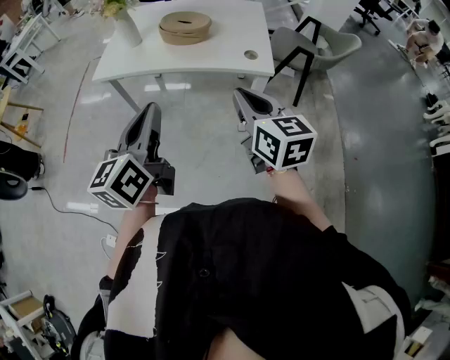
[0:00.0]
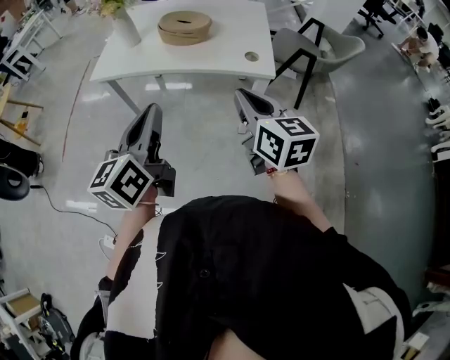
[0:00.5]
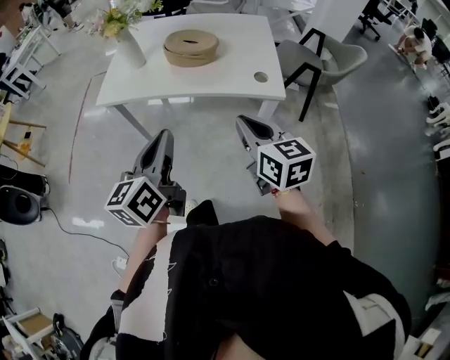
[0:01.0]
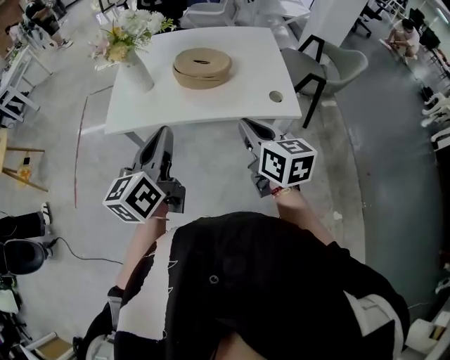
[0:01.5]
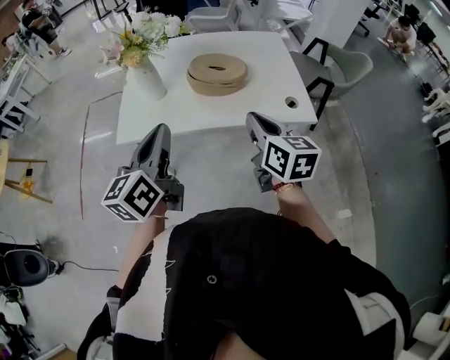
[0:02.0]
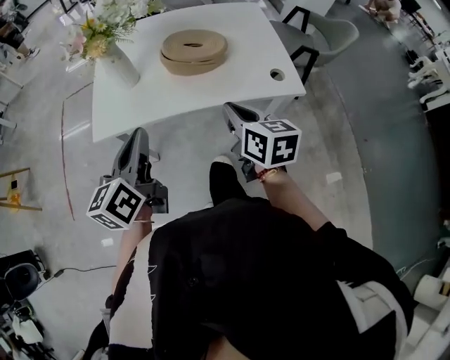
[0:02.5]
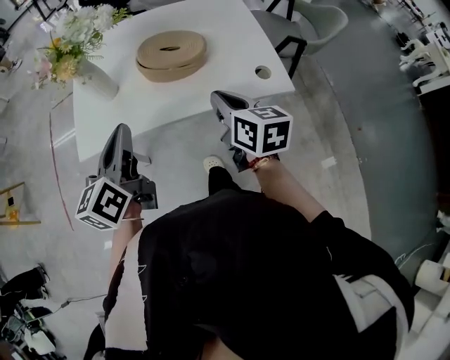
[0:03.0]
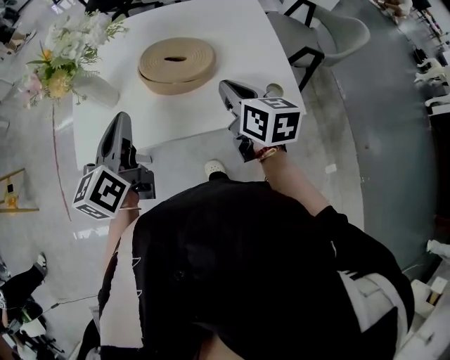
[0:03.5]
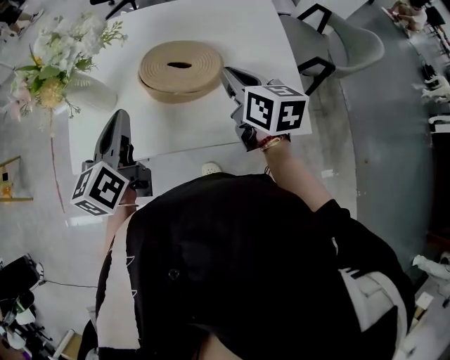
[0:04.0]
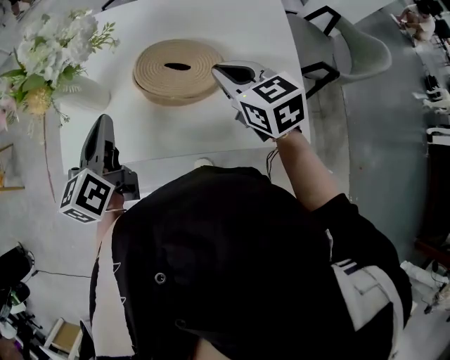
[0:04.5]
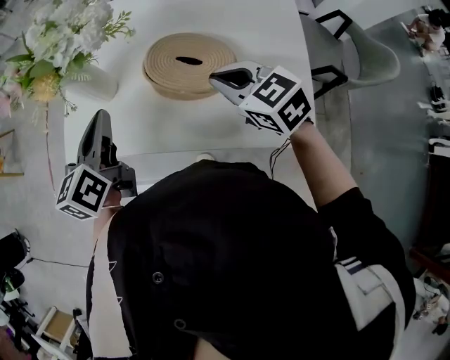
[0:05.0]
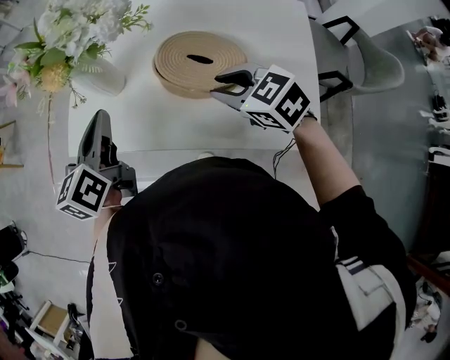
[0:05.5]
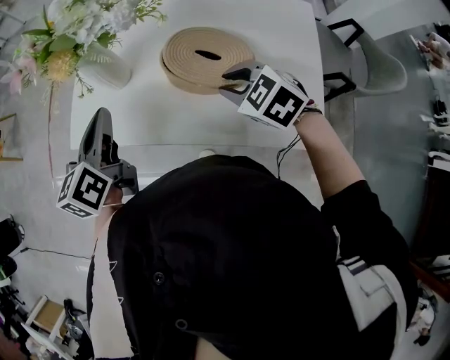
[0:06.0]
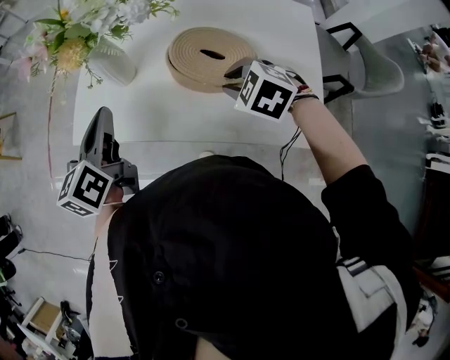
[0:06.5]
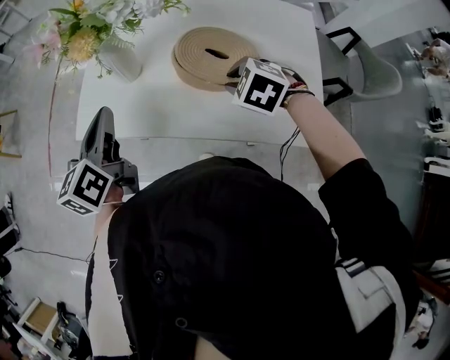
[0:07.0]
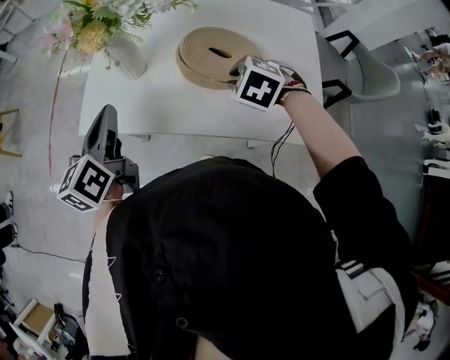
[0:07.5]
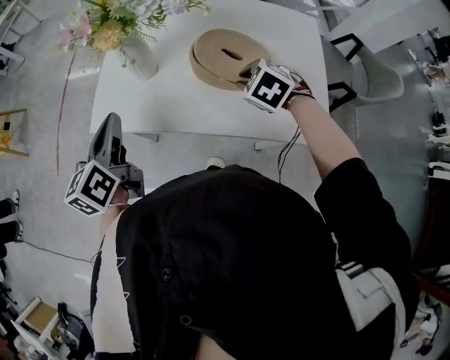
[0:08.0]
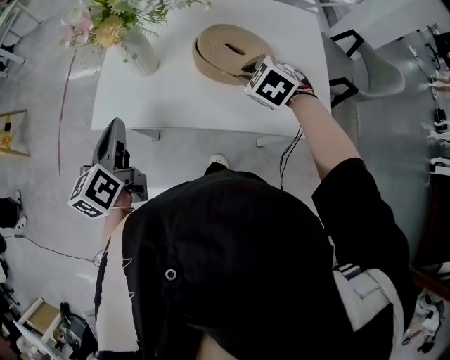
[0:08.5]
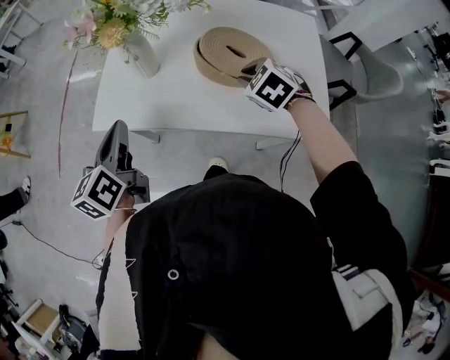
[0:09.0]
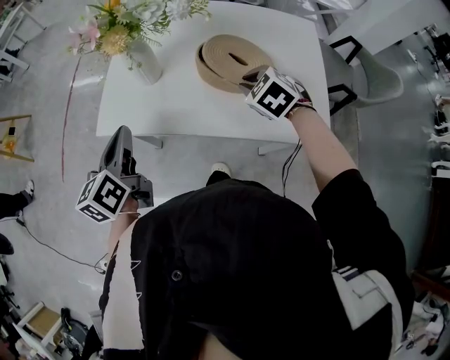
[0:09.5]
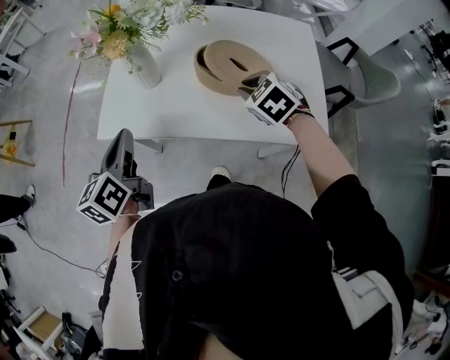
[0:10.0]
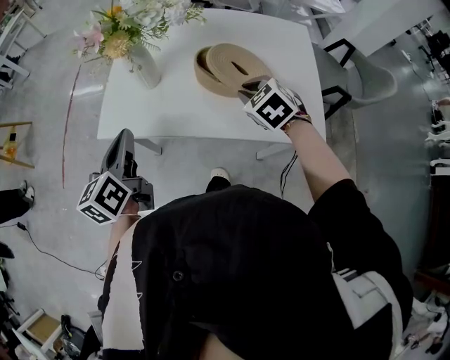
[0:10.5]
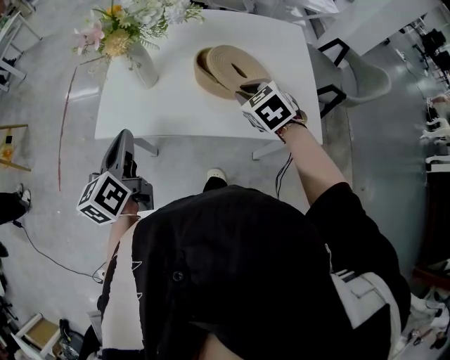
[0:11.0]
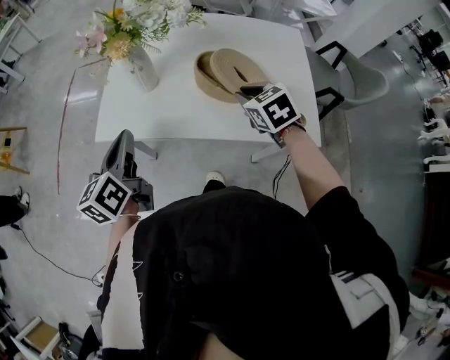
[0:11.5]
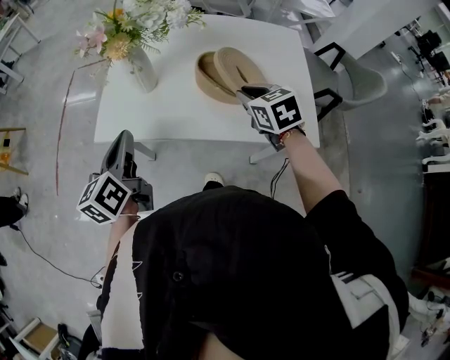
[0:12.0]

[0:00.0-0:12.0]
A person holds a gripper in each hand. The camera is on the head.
0:00.0 to 0:02.0: Both grippers move forward and to the left, about 25 cm.
0:02.0 to 0:04.0: The right gripper heads forward, covering about 25 cm. The left gripper travels forward and downward by roughly 20 cm.
0:04.0 to 0:06.0: The right gripper shifts by some 10 cm, angles its fingers downward, by roughly 30 degrees, and opens. The left gripper ends up about 10 cm from where it was.
0:06.0 to 0:08.0: The left gripper is displaced to the left by some 5 cm.
0:08.0 to 0:10.0: The grippers make only small movements.
0:10.0 to 0:12.0: The right gripper rotates about 30 degrees.

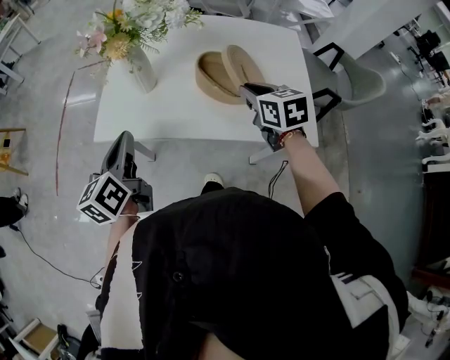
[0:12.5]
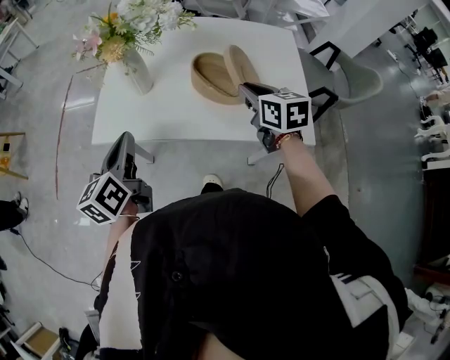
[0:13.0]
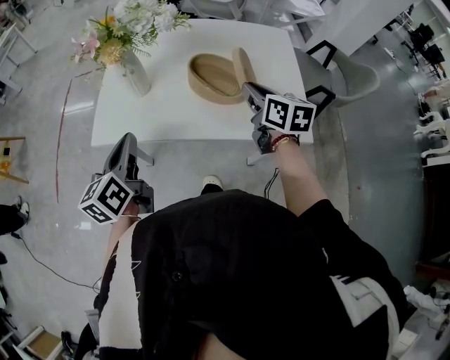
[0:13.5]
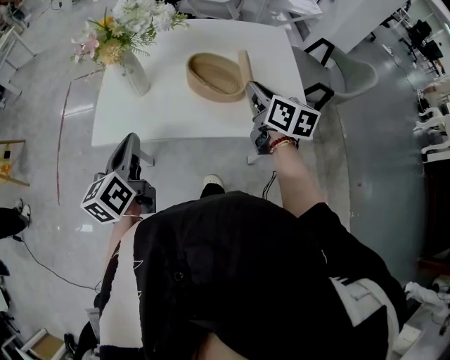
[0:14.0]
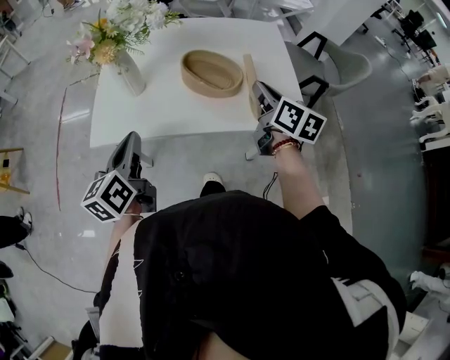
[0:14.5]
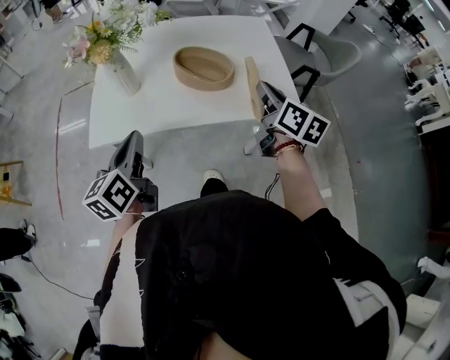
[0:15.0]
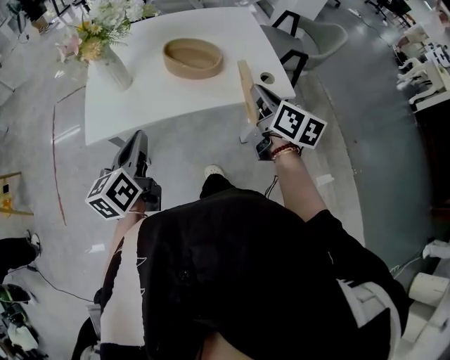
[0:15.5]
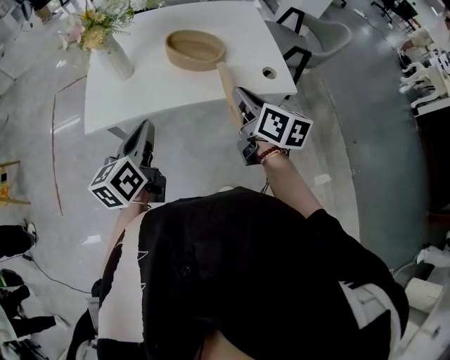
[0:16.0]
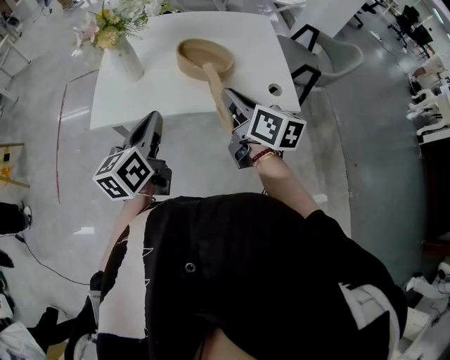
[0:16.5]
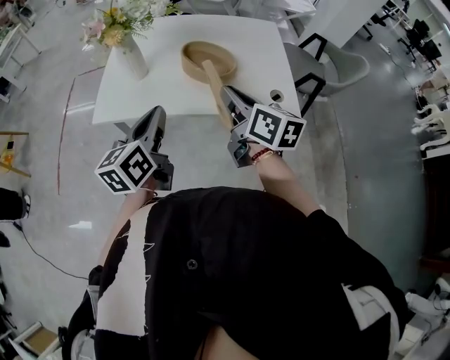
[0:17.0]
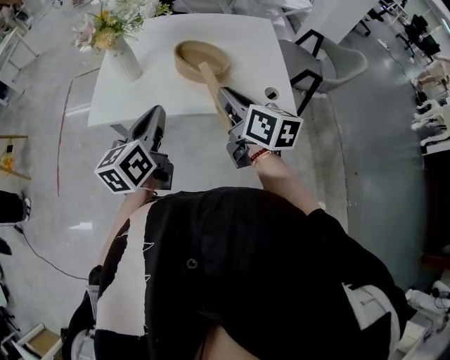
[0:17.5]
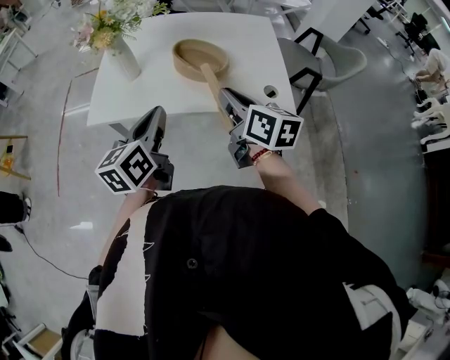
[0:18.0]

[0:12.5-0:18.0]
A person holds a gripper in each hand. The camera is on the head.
0:12.5 to 0:14.5: The right gripper goes about 10 cm to the right and backward, and changes its angle by approximately 40 degrees.
0:14.5 to 0:16.0: The left gripper heads backward and to the right, covering approximately 10 cm; the right gripper goes some 15 cm backward.
0:16.0 to 0:18.0: The left gripper travels to the right by about 5 cm.

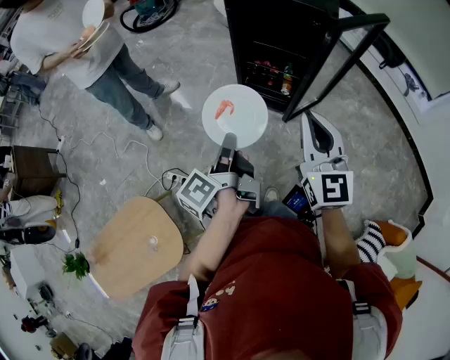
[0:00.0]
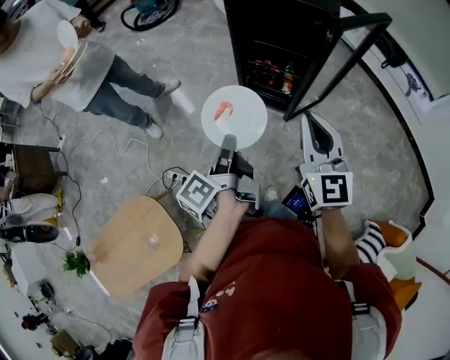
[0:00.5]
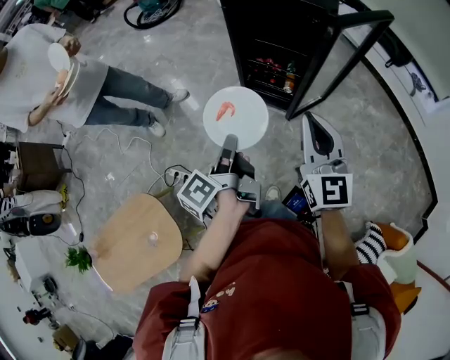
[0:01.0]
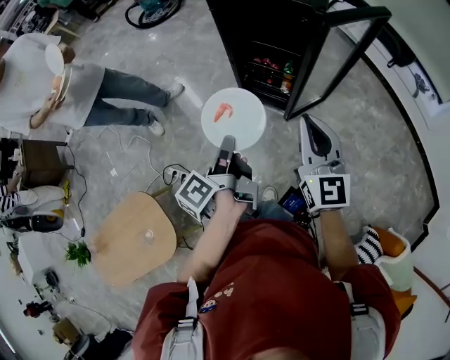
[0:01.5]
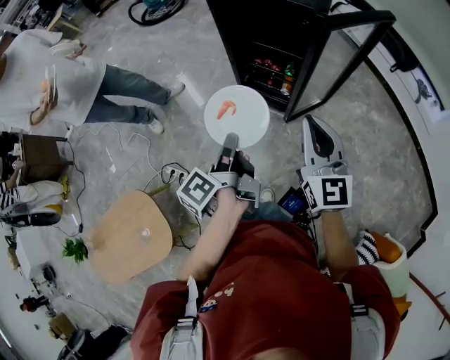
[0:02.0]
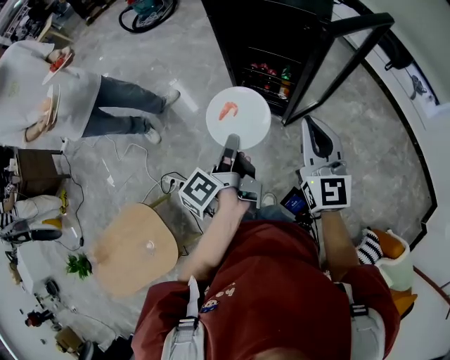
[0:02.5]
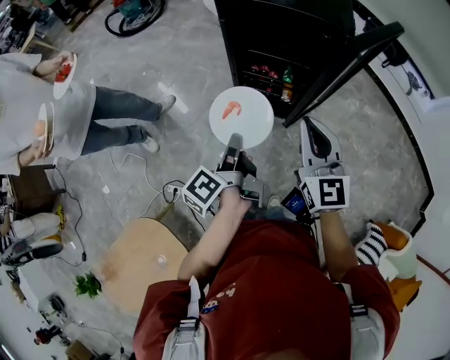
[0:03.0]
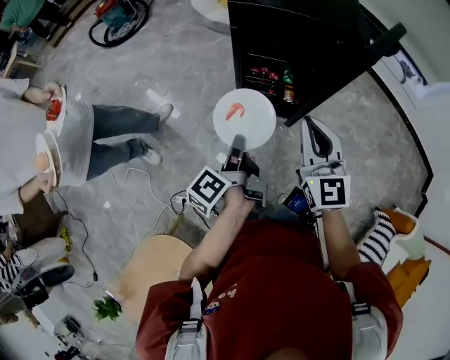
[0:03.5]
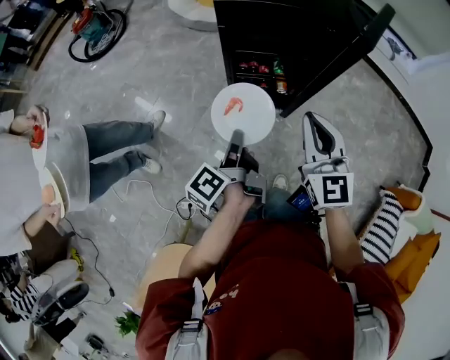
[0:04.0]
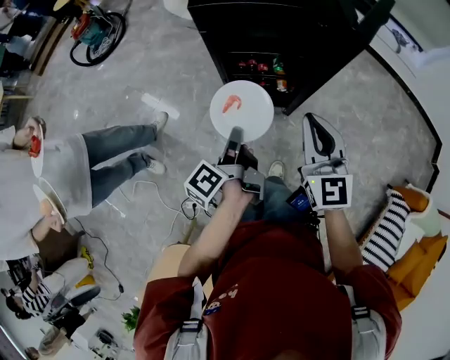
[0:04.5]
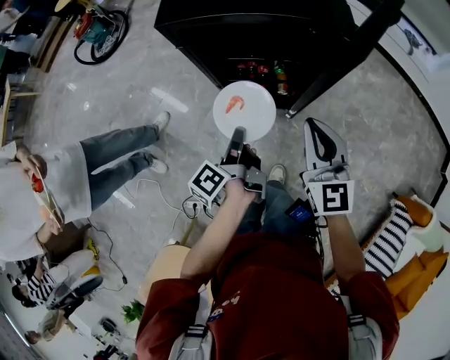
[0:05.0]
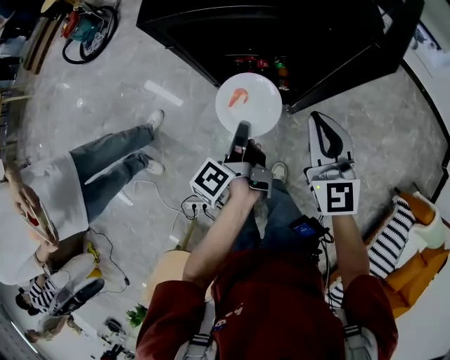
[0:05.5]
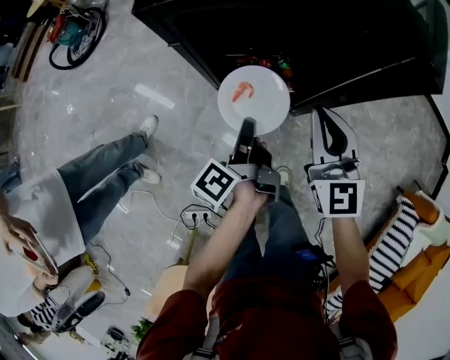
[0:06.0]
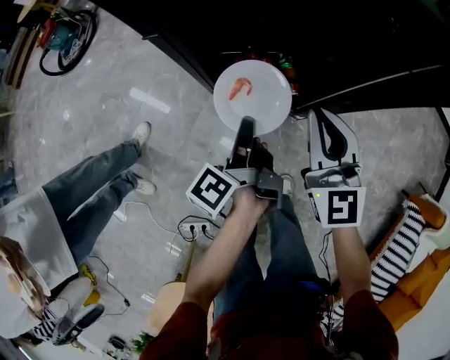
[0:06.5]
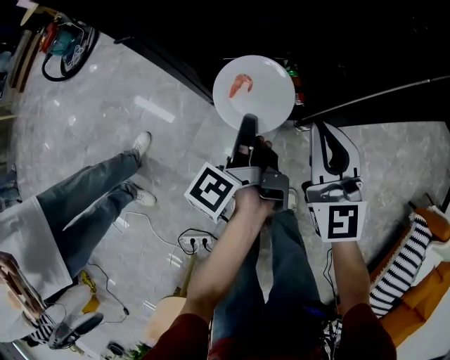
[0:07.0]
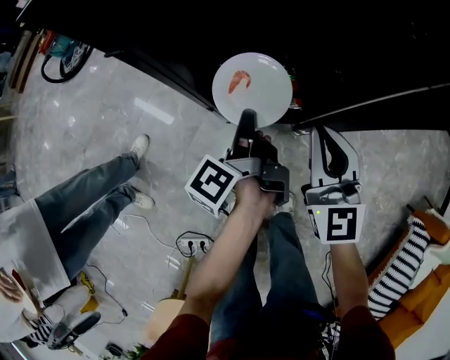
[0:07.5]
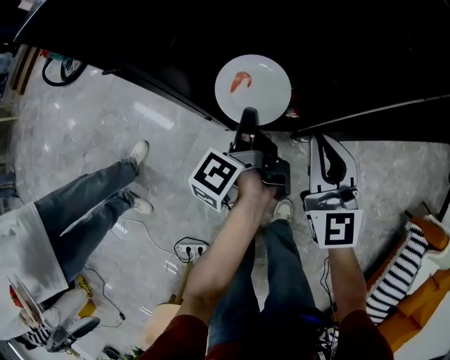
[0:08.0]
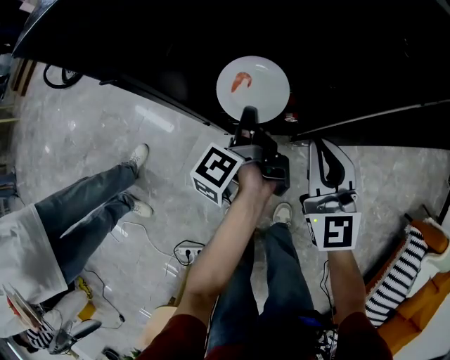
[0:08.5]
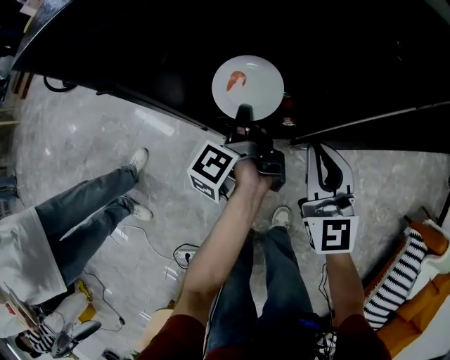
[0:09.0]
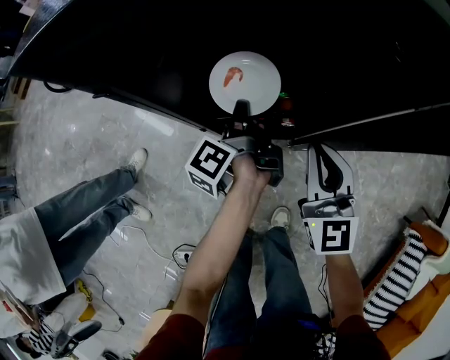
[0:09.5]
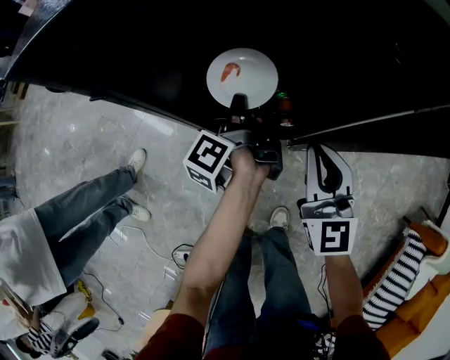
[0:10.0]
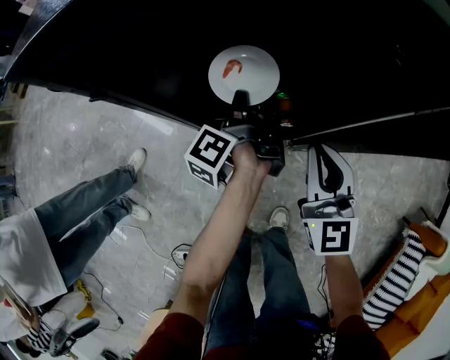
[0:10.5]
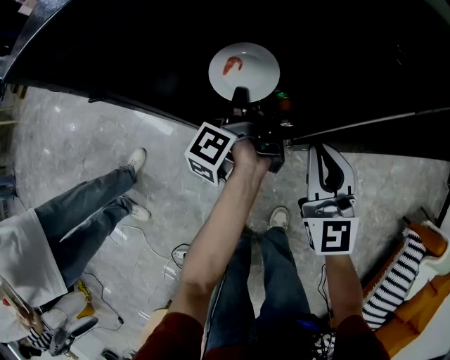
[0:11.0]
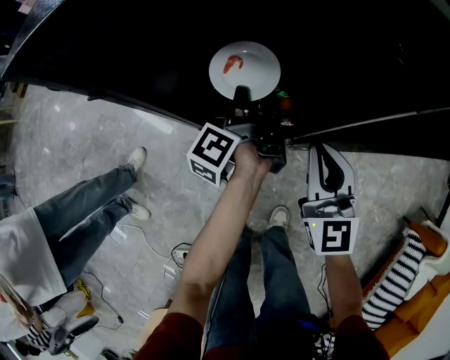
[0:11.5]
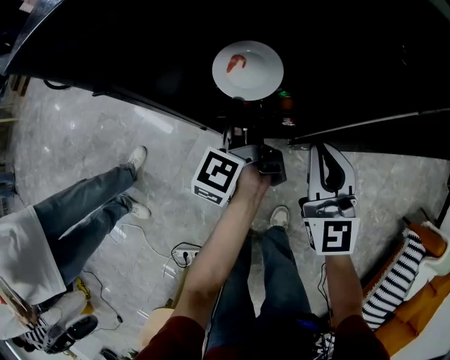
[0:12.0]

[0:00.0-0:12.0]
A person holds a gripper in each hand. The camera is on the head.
0:00.0 to 0:02.0: Both grippers travel together to the right, approximately 10 cm.
0:02.0 to 0:04.0: The right gripper is displaced to the left and forward by approximately 20 cm, and rotates approximately 20 degrees; the left gripper is displaced forward and to the left by about 20 cm, and turns by some 20 degrees.
0:04.0 to 0:06.0: The right gripper travels forward and downward by some 20 cm. Meanwhile the left gripper heads forward, downward and to the right, covering some 20 cm.
0:06.0 to 0:08.0: The left gripper shifts some 15 cm forward and downward; the right gripper travels downward by about 10 cm.
0:08.0 to 0:10.0: The left gripper is displaced forward by about 5 cm.
0:10.0 to 0:12.0: The grippers make only small movements.
